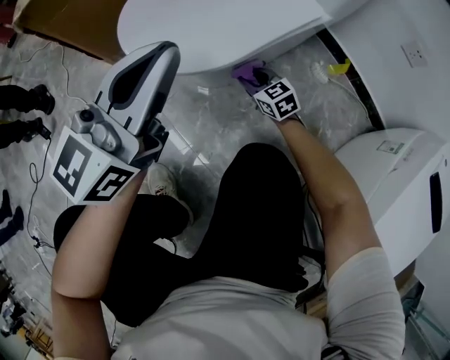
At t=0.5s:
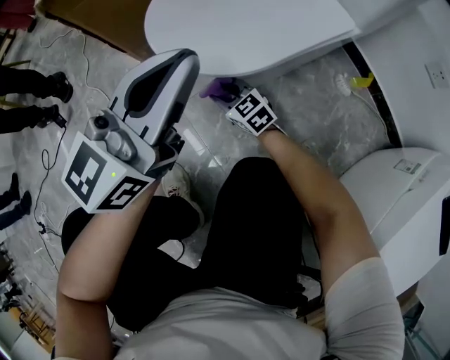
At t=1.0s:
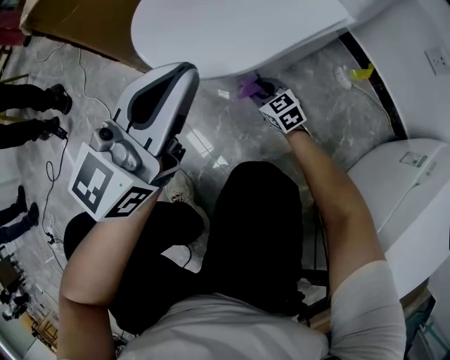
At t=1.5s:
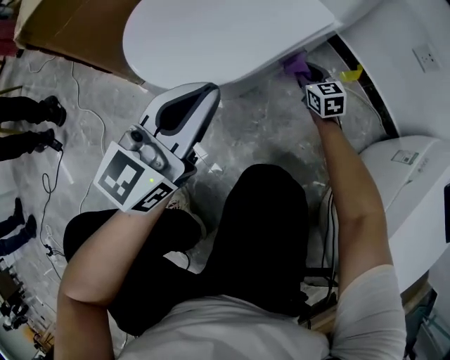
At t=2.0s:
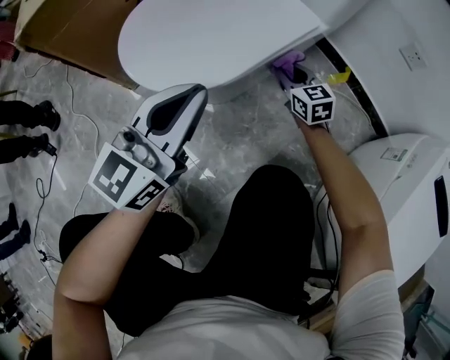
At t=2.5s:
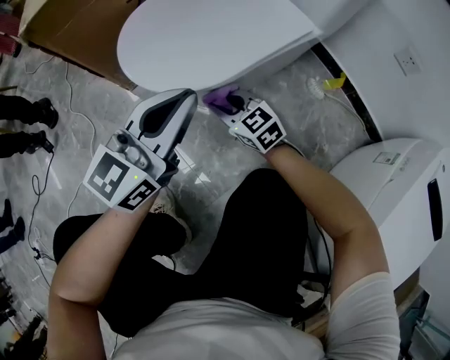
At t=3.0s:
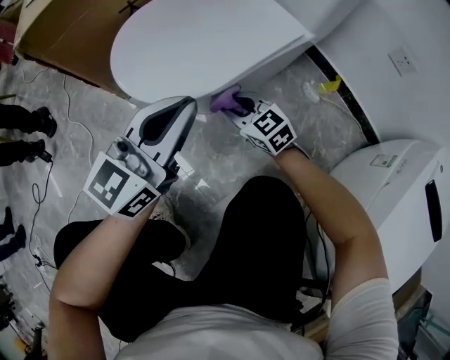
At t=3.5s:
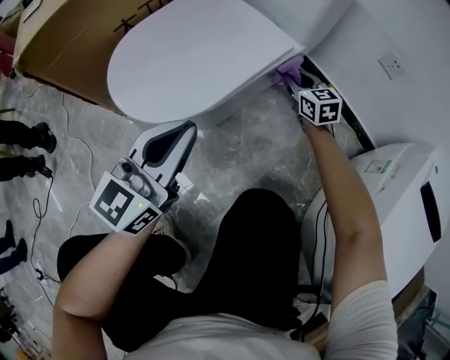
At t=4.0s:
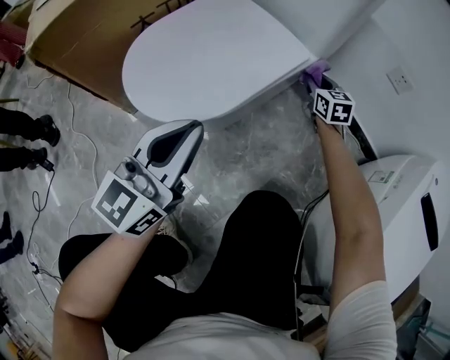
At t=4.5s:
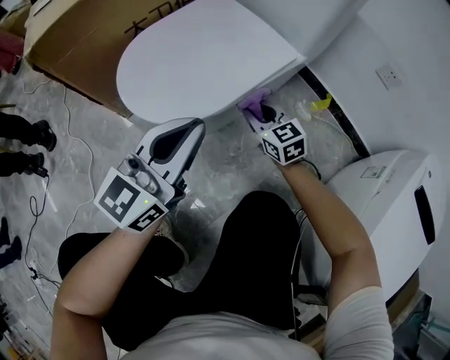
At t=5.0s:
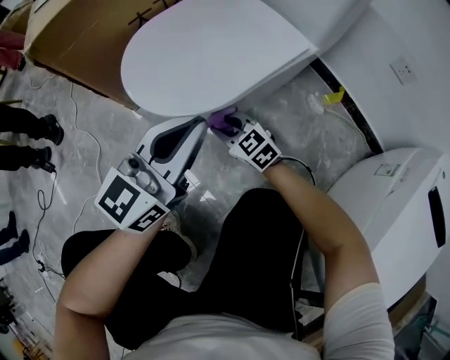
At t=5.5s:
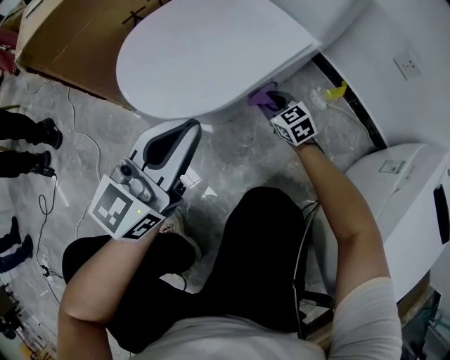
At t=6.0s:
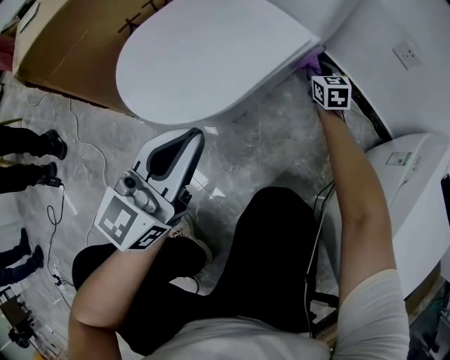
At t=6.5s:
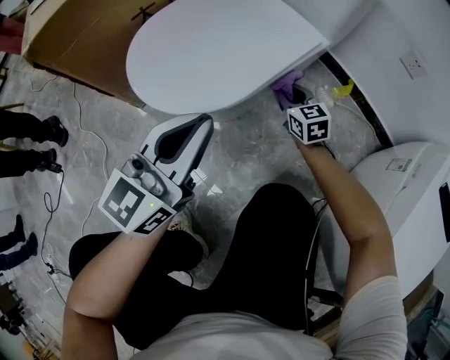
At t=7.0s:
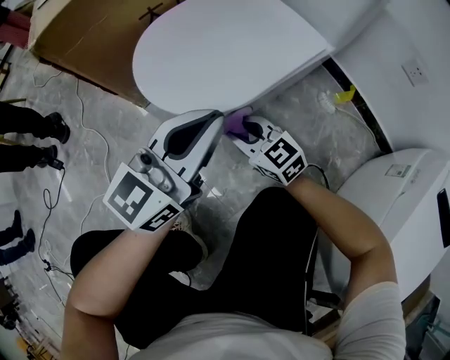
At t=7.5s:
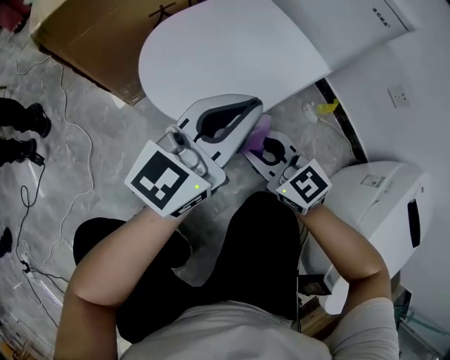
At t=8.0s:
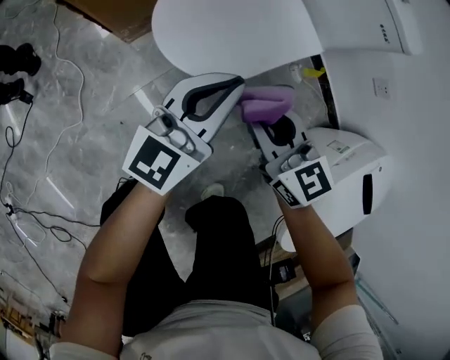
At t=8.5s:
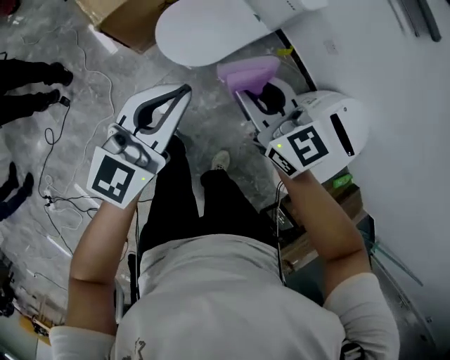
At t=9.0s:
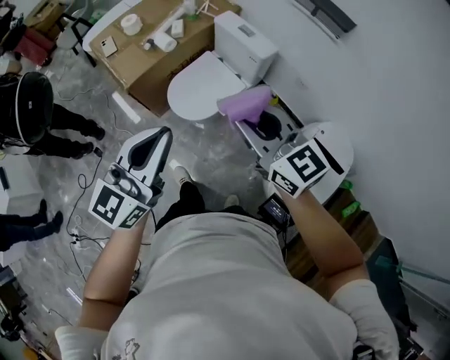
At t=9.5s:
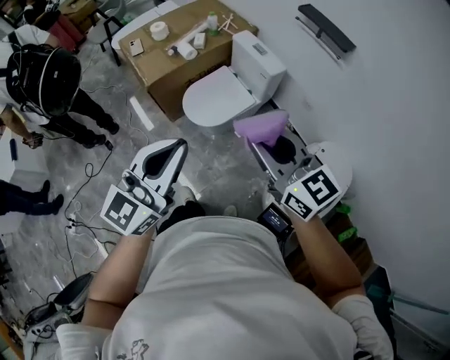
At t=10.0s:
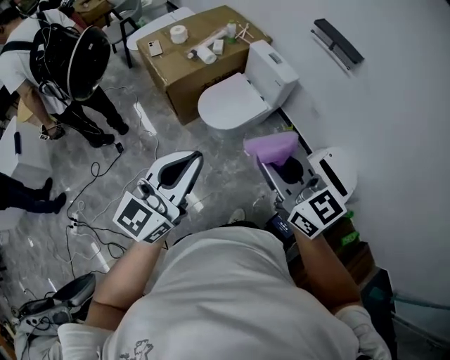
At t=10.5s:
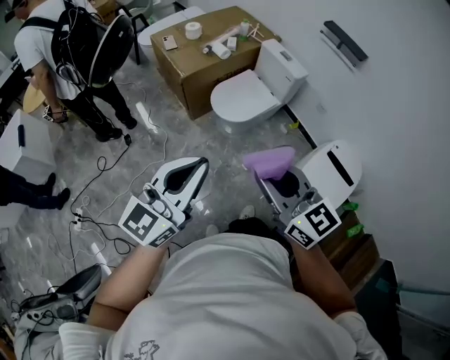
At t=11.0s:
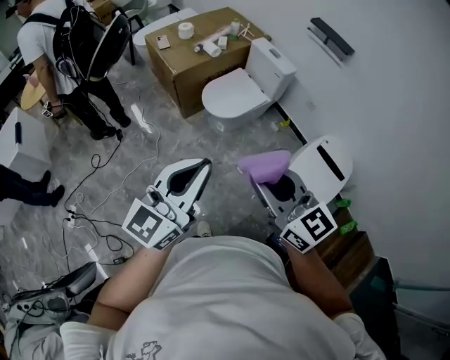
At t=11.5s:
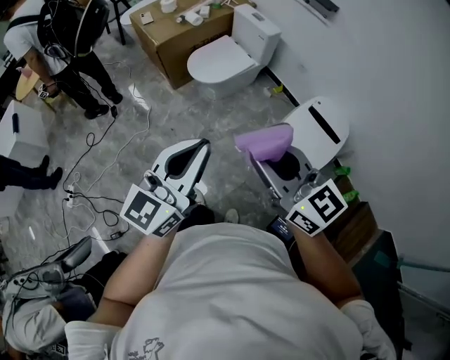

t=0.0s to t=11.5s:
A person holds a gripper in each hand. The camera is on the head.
t=0.0s to t=2.0s: The left gripper moves downward, approximately 5 cm. Meanwhile the right gripper moves left and right over approximately 30 cm, changing direction 2 times.
t=2.0s to t=4.0s: The right gripper goes roughly 15 cm to the right and forward.
t=6.0s to t=7.5s: The right gripper ends up about 40 cm from where it was, and rotates some 40 degrees. The left gripper ends up about 10 cm from where it was.
t=7.5s to t=9.5s: The right gripper moves upward, about 70 cm; the left gripper shifts approximately 70 cm upward and backward.
t=9.5s to t=11.5s: The grippers both shift backward by roughly 35 cm.

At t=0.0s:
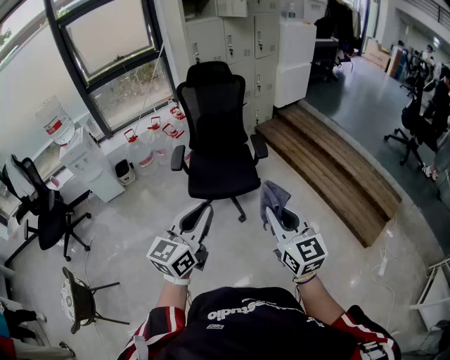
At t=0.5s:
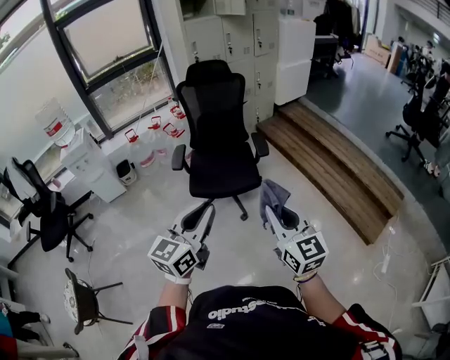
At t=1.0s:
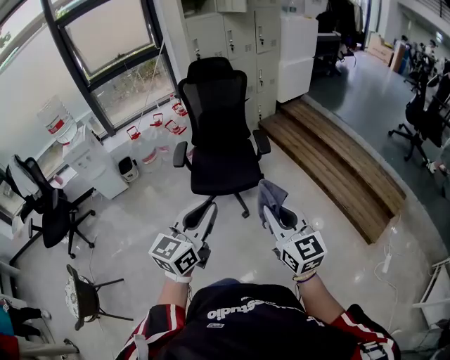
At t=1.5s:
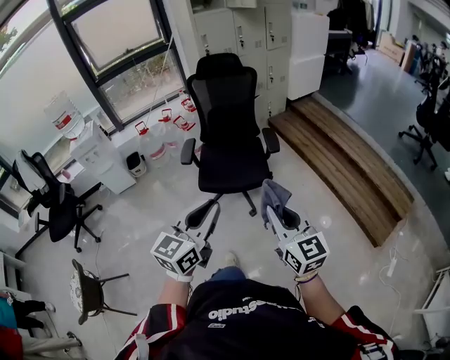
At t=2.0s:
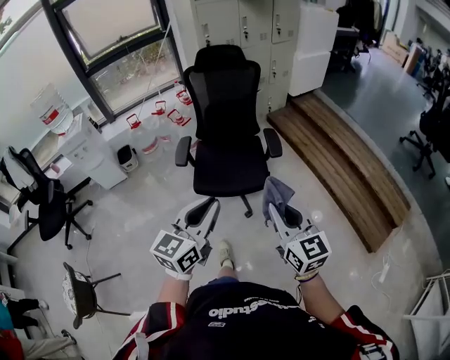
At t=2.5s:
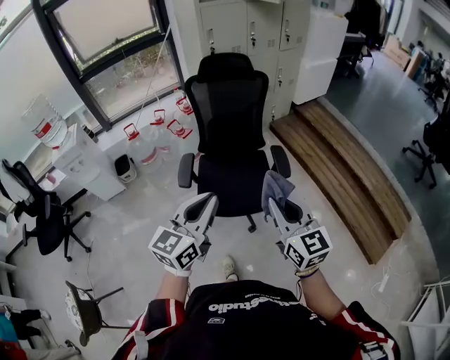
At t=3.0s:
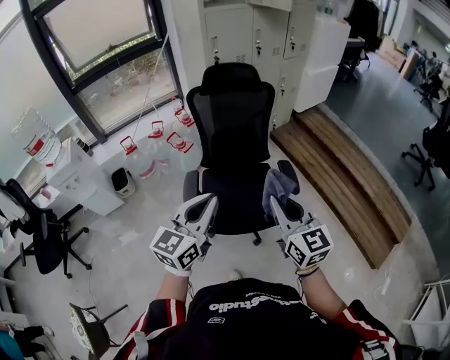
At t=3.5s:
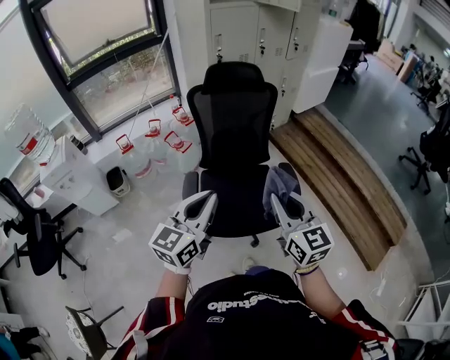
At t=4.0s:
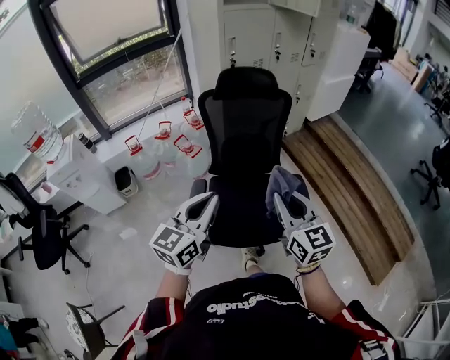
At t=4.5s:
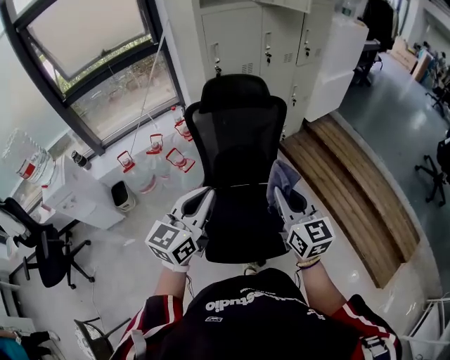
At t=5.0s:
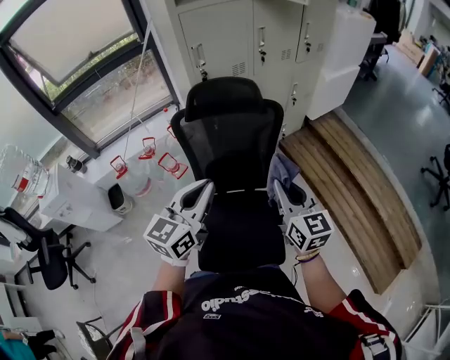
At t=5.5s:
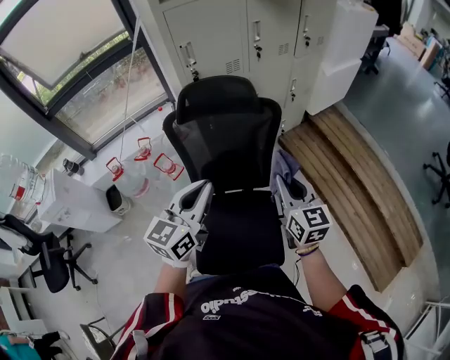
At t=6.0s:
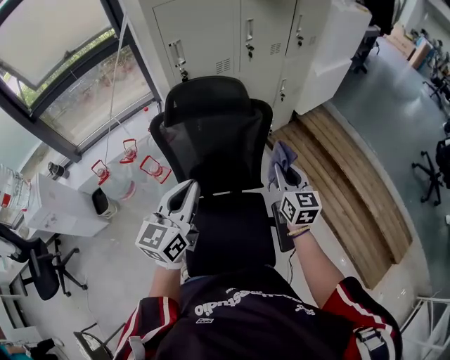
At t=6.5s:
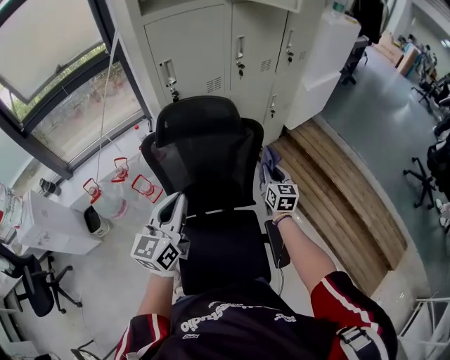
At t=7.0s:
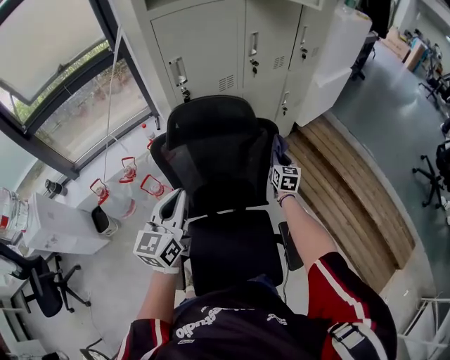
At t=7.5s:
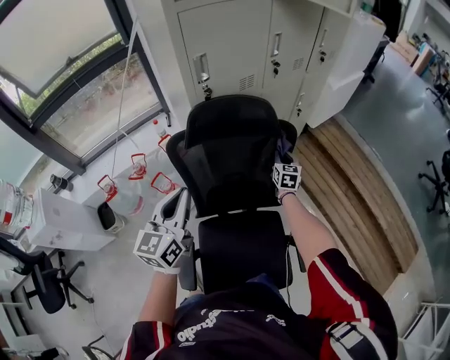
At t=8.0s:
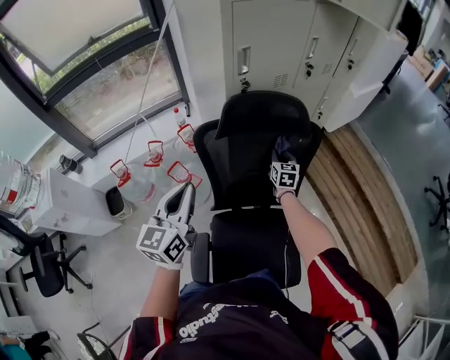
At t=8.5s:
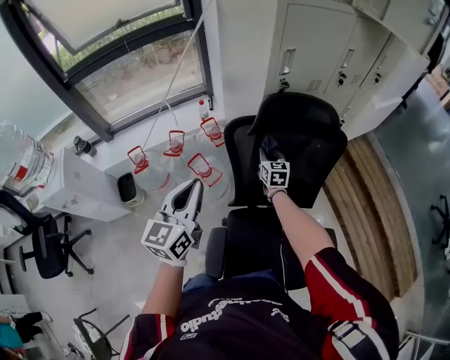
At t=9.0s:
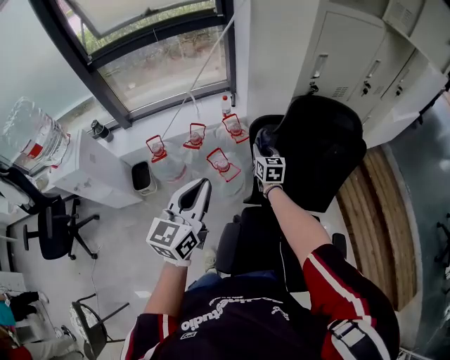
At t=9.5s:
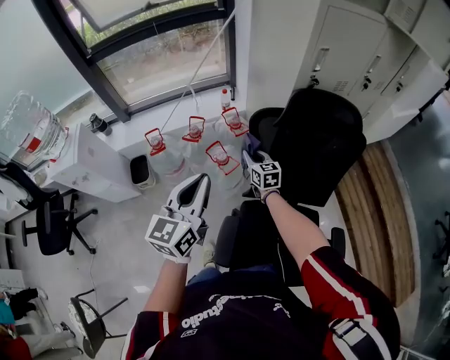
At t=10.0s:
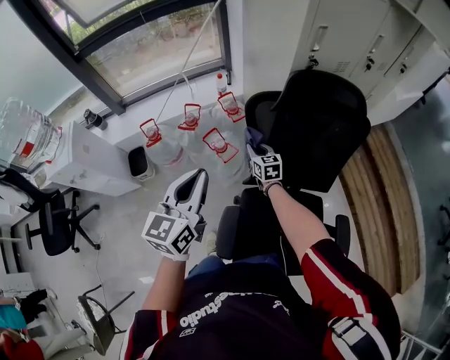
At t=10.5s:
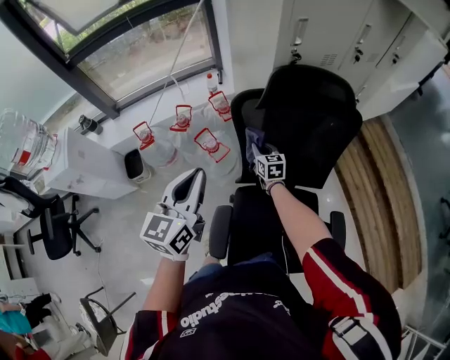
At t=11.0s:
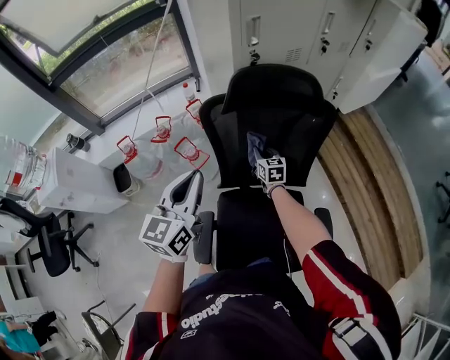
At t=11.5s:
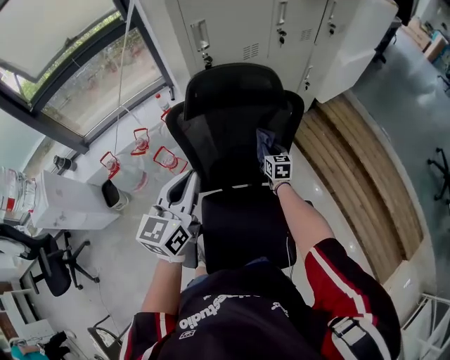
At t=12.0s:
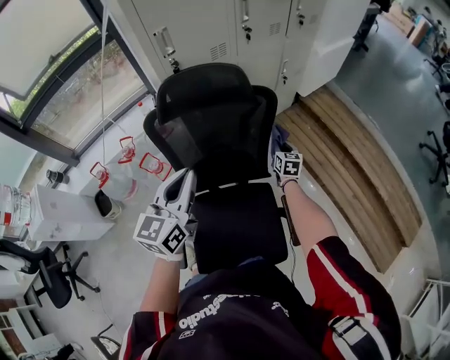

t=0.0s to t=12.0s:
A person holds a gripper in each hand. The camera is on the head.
t=0.0s to t=2.0s: Both grippers move forward, about 15 cm.
t=2.0s to t=4.0s: The two grippers travel together, forward and to the left, about 40 cm.
t=4.0s to t=6.0s: The grippers both shift forward by roughly 40 cm.
t=6.0s to t=8.0s: The left gripper shifts some 25 cm to the left. Meanwhile the right gripper shifts roughly 35 cm forward, to the left and downward.
t=8.0s to t=10.0s: The left gripper is displaced to the left by some 10 cm. The right gripper shifts roughly 30 cm to the left, and turns by about 30 degrees.
t=10.0s to t=12.0s: The right gripper ends up roughly 50 cm from where it was, and rotates roughly 30 degrees. The left gripper ends up some 30 cm from where it was.

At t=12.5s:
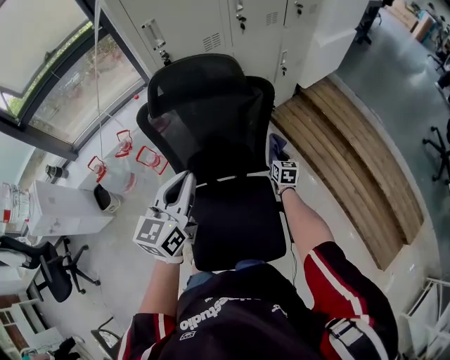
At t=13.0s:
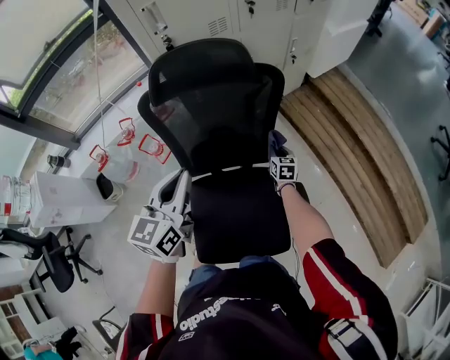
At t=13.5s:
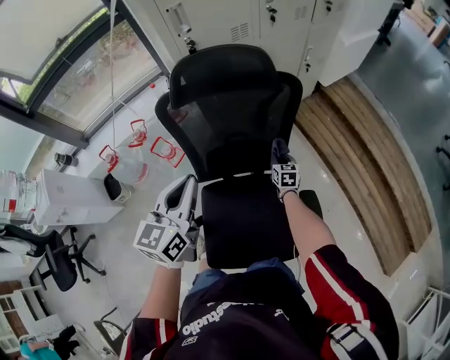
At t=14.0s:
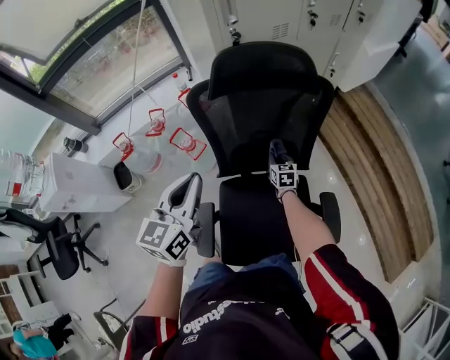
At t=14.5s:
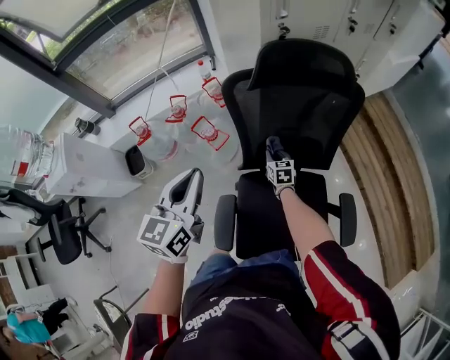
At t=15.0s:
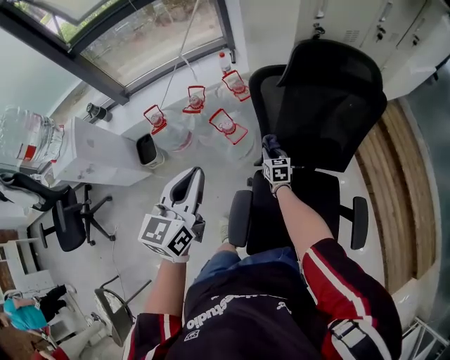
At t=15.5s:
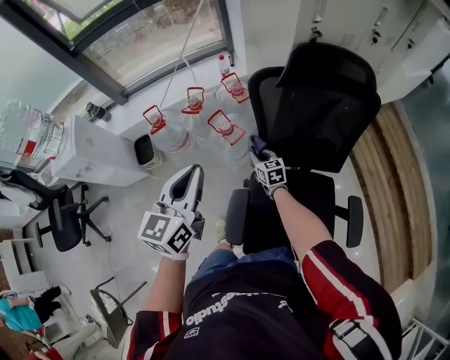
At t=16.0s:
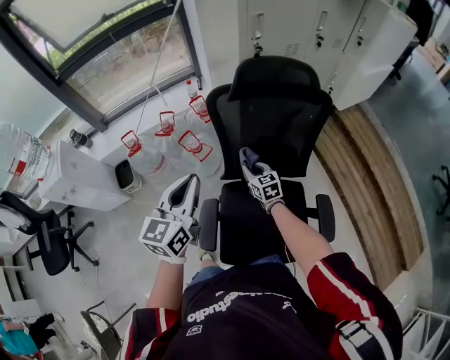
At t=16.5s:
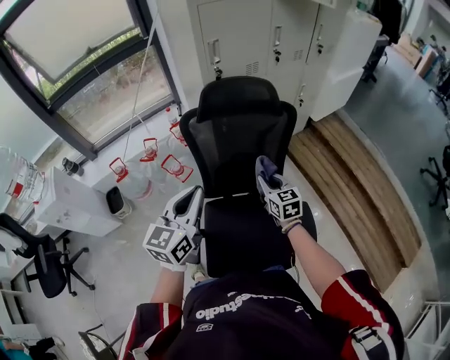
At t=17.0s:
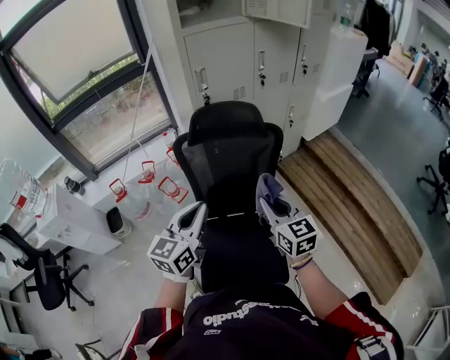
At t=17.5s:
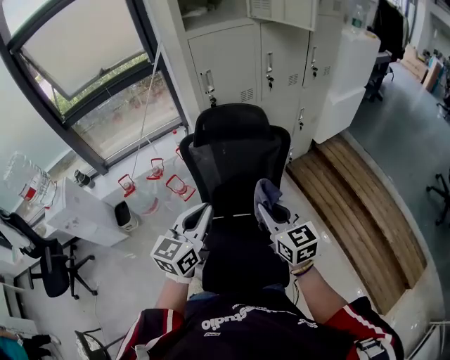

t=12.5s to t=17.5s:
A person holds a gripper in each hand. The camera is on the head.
t=12.5s to t=15.0s: Both grippers travel together to the left, roughly 40 cm. The right gripper turns by approximately 20 degrees.
t=15.0s to t=17.5s: The left gripper goes roughly 30 cm to the right. The right gripper moves upward, to the right and backward, about 60 cm, and changes its angle by about 30 degrees.
